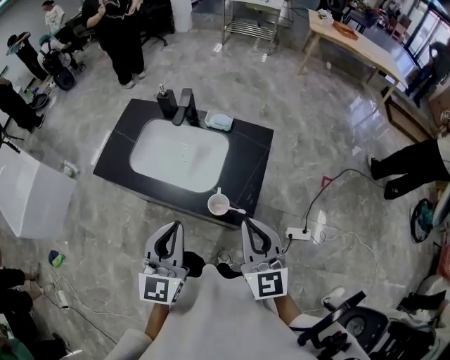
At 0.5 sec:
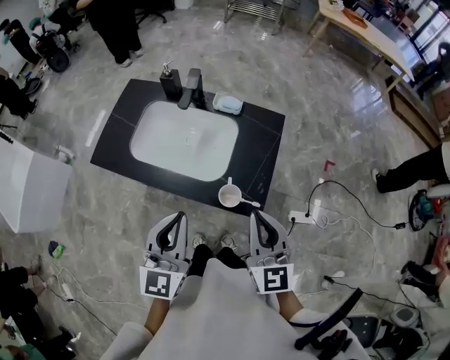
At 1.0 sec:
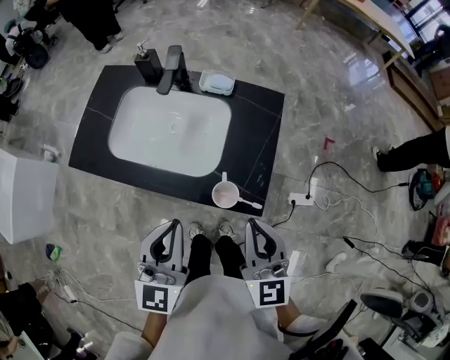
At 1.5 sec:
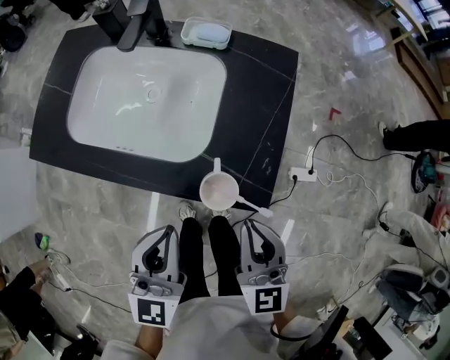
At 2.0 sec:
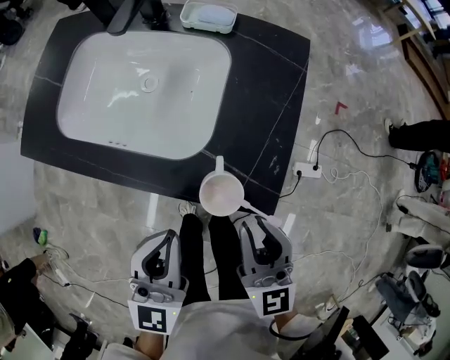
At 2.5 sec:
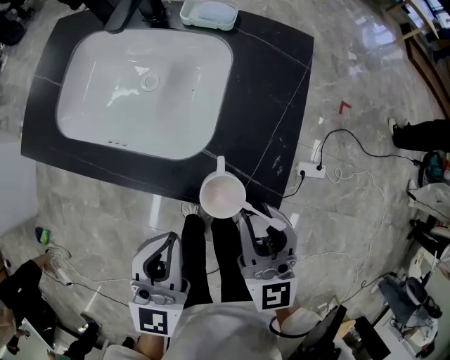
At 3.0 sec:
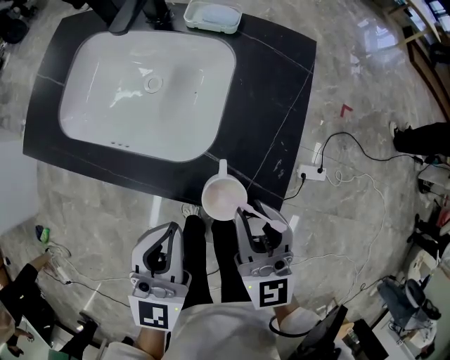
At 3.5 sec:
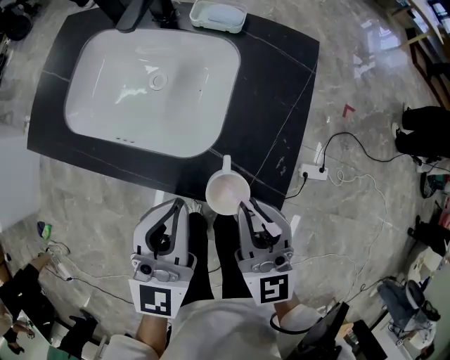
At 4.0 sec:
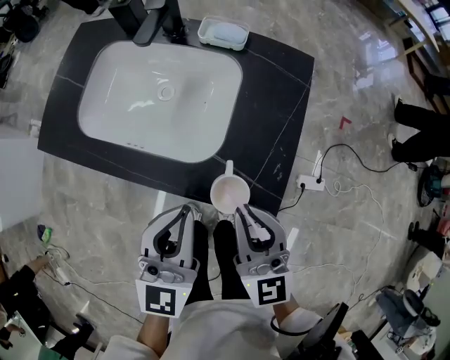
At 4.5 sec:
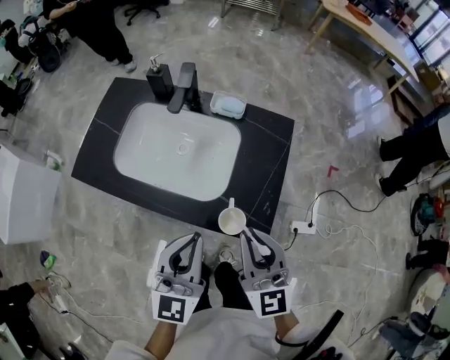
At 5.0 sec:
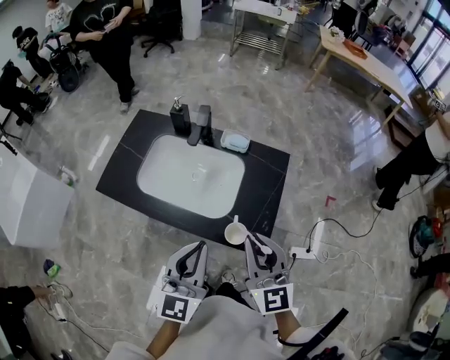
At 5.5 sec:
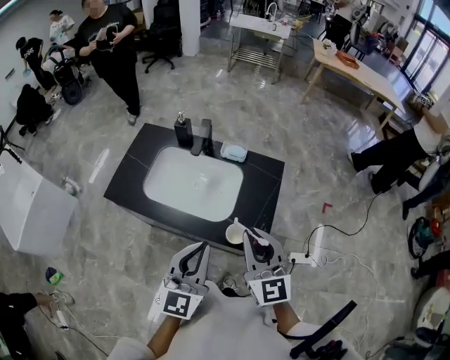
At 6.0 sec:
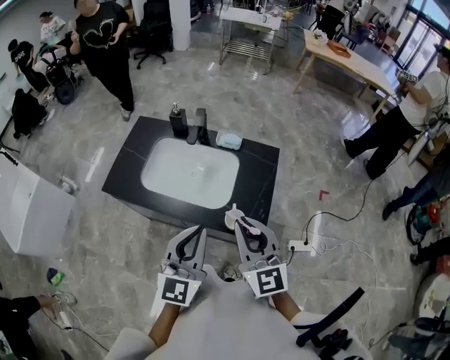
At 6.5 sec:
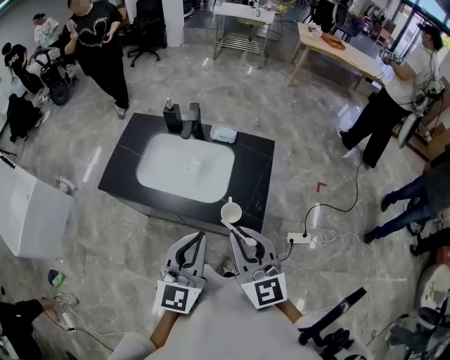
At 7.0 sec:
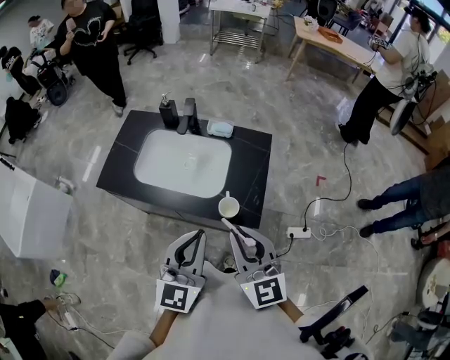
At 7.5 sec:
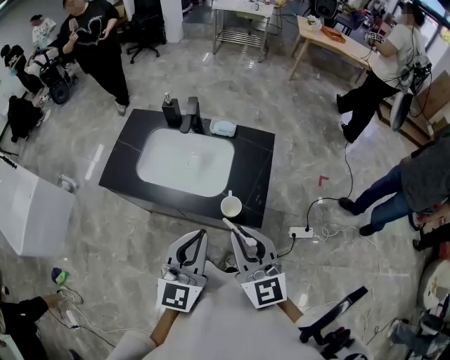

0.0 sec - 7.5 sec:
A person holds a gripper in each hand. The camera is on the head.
0.0 sec - 2.0 sec: Both grippers move downward, roughly 20 cm.
2.0 sec - 4.0 sec: The grippers move only a little.
4.0 sec - 5.5 sec: The two grippers go approximately 20 cm upward.
5.5 sec - 7.5 sec: The right gripper heads backward, covering roughly 5 cm.

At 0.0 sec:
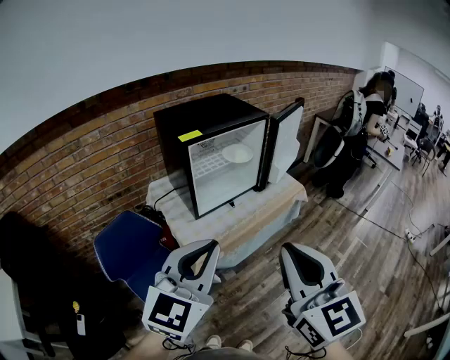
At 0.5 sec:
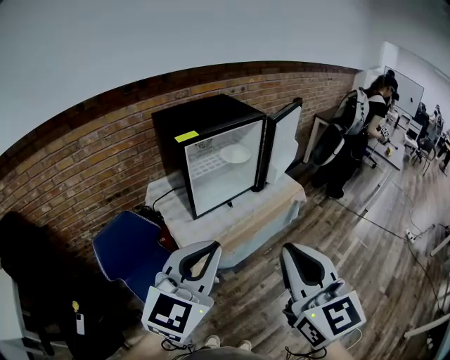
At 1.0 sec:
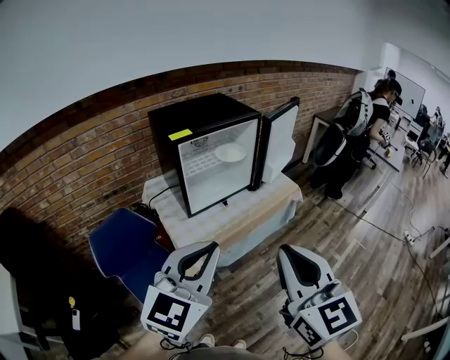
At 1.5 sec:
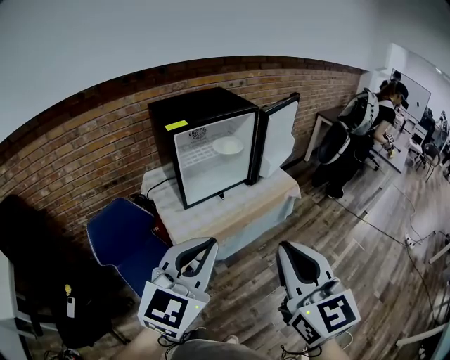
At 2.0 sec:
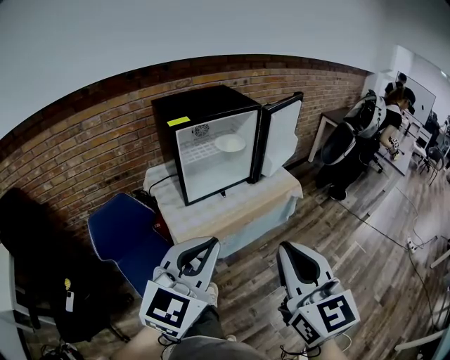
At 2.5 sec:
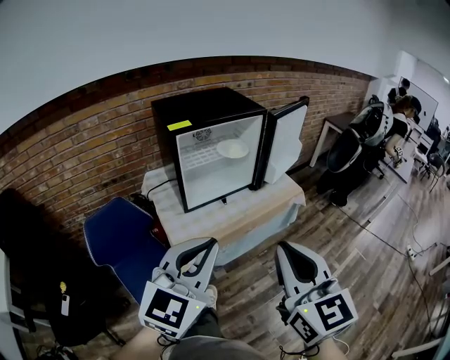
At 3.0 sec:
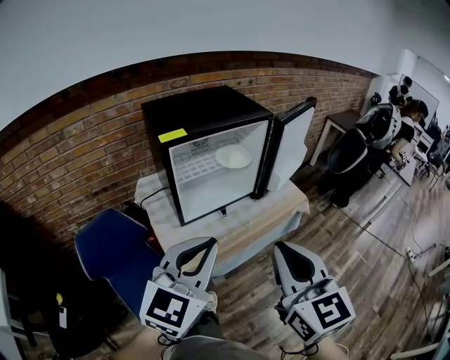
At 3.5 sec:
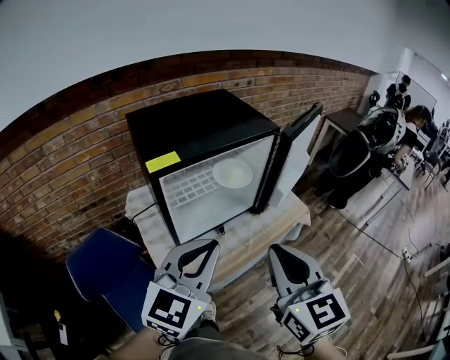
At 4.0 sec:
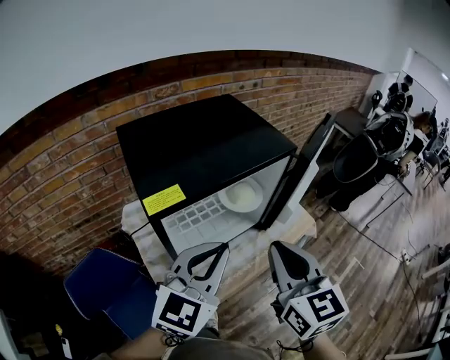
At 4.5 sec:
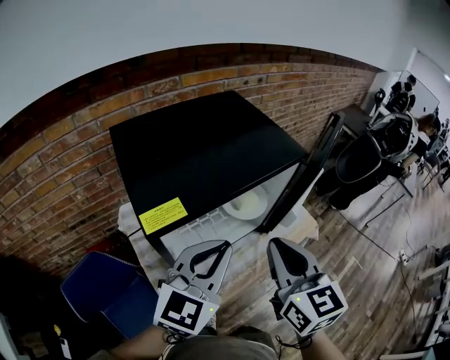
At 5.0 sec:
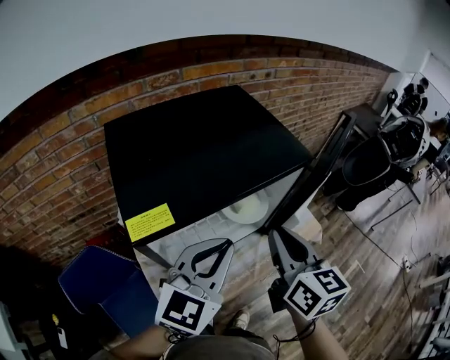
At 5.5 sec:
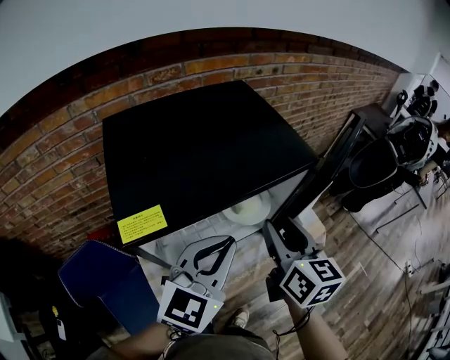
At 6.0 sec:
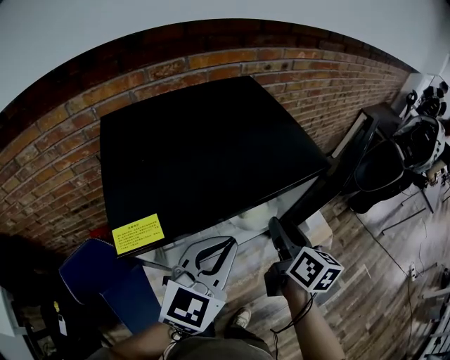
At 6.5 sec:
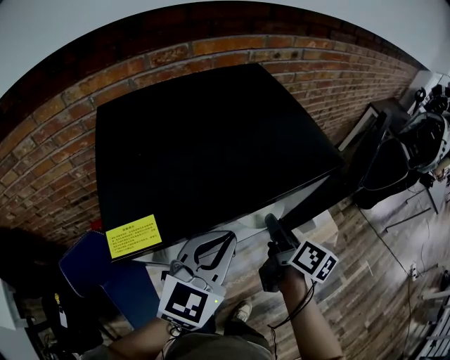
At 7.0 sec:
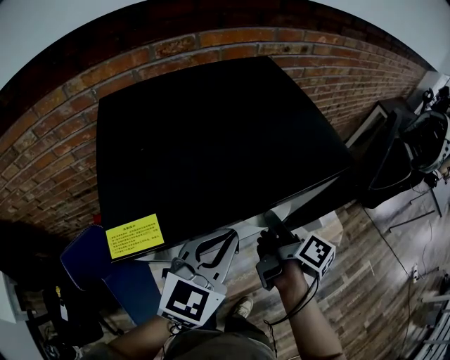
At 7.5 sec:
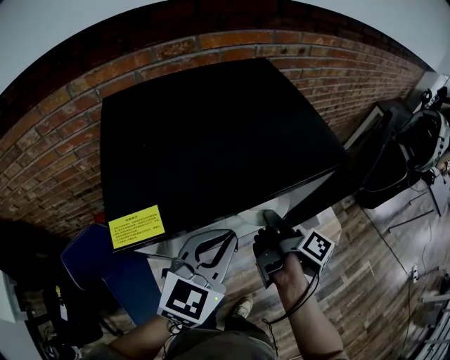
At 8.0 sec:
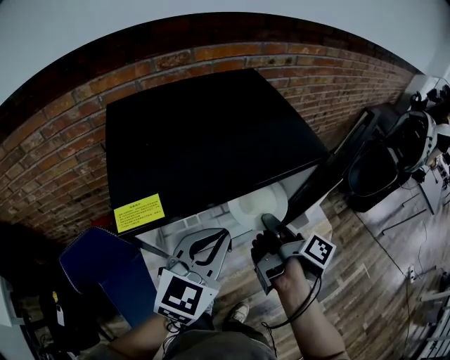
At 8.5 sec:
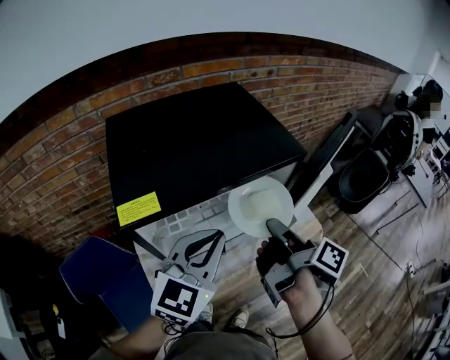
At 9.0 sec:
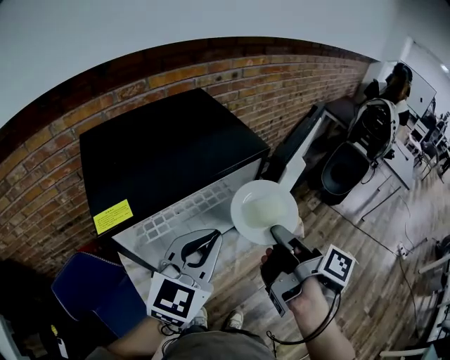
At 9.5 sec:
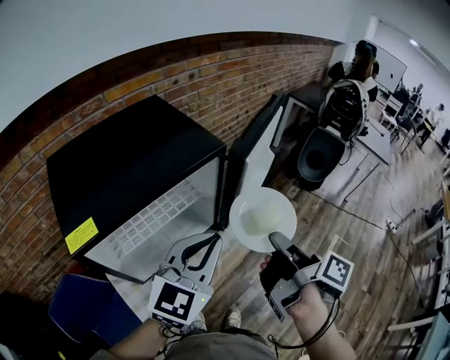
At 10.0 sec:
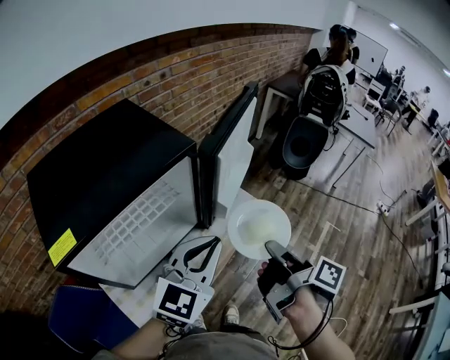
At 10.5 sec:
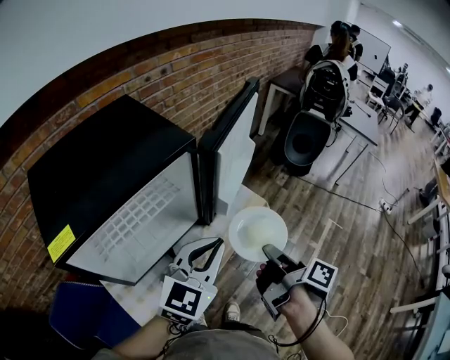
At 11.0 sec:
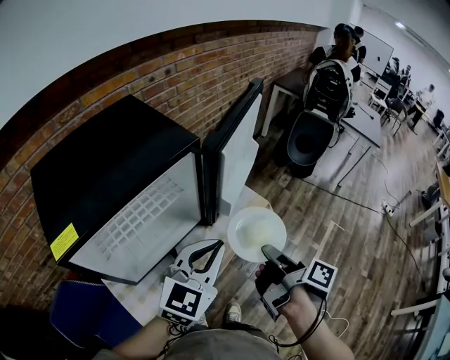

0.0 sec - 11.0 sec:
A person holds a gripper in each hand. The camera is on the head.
0.0 sec - 2.0 sec: Both grippers travel together to the right, about 10 cm.
2.0 sec - 3.5 sec: The two grippers go about 25 cm forward.
3.5 sec - 5.5 sec: The grippers both shift forward by some 20 cm. The right gripper changes its angle by approximately 20 degrees, and opens up.
5.5 sec - 7.5 sec: The right gripper is displaced downward and forward by approximately 15 cm, twists about 70 degrees clockwise, seen from behind, and closes its fingers. Meanwhile the left gripper is displaced downward by approximately 5 cm.
7.5 sec - 9.0 sec: The left gripper heads upward and to the right, covering some 10 cm; the right gripper is displaced upward, backward and to the right by approximately 20 cm.
9.0 sec - 11.0 sec: The two grippers go about 15 cm to the right and downward.

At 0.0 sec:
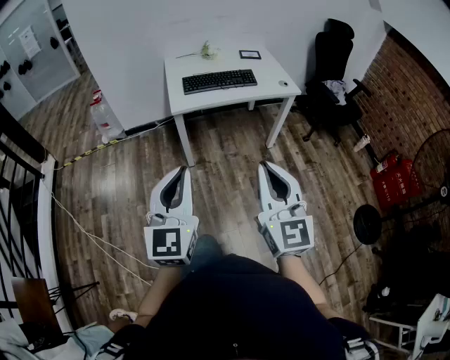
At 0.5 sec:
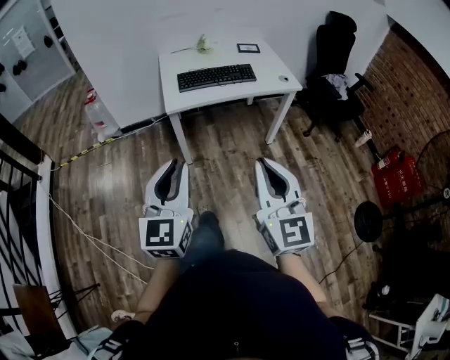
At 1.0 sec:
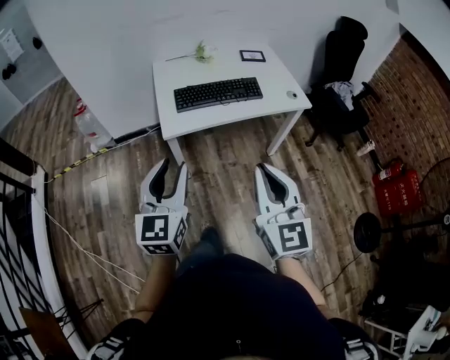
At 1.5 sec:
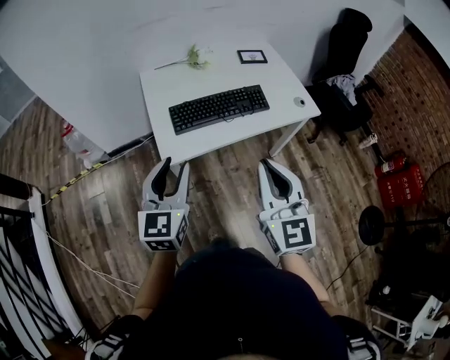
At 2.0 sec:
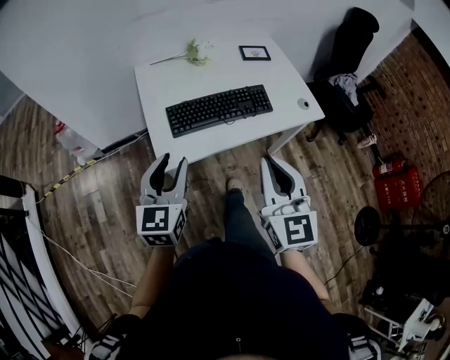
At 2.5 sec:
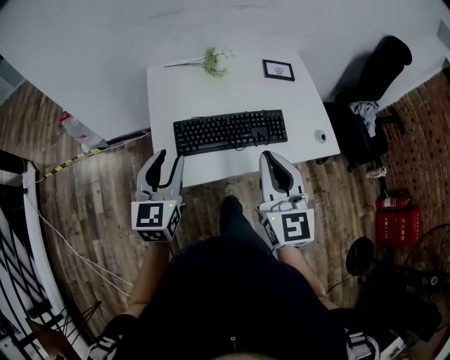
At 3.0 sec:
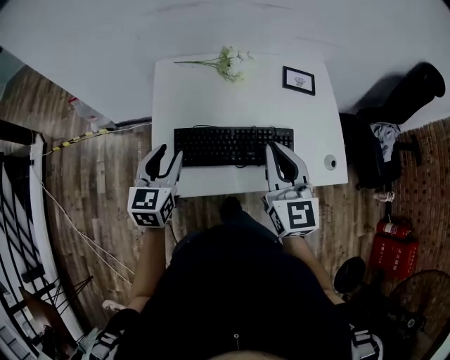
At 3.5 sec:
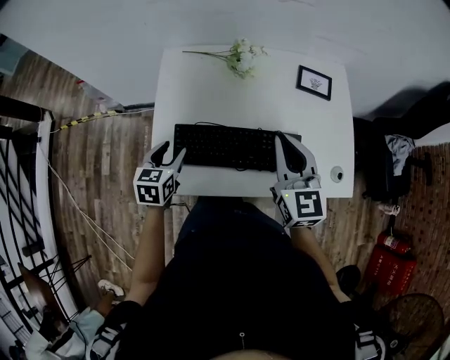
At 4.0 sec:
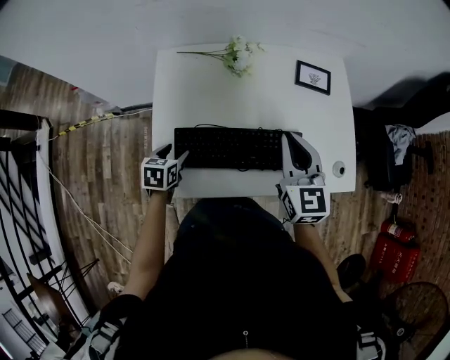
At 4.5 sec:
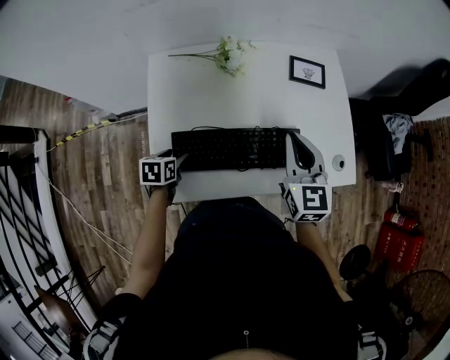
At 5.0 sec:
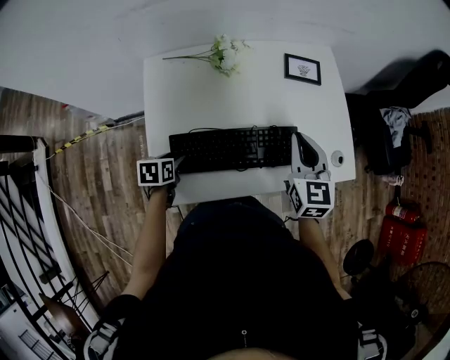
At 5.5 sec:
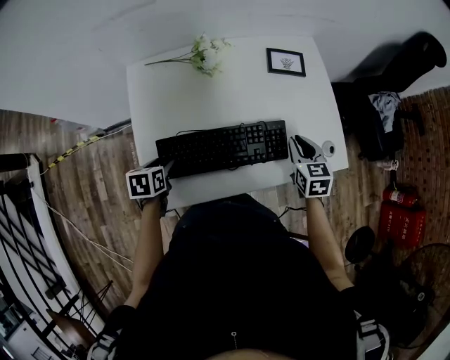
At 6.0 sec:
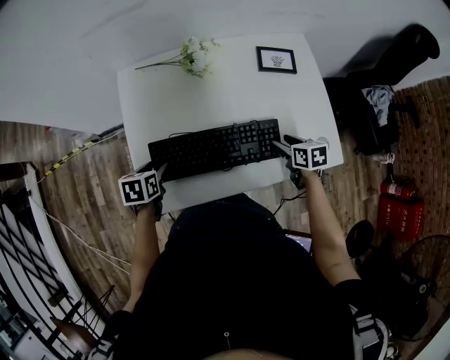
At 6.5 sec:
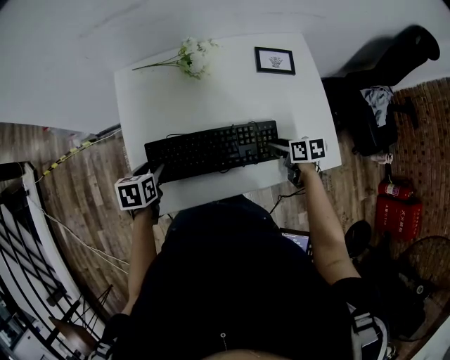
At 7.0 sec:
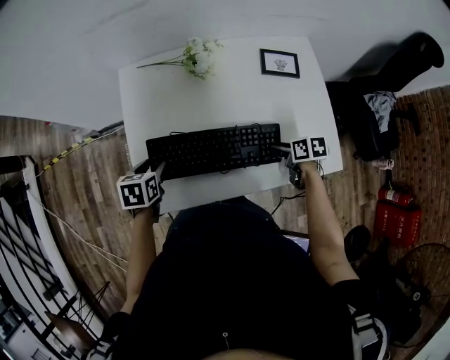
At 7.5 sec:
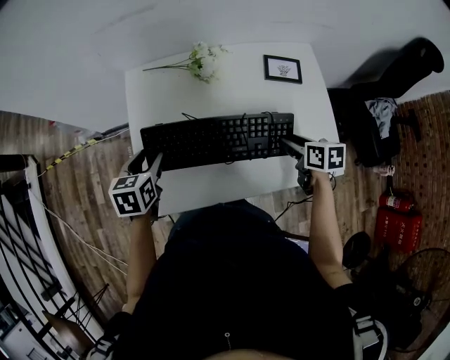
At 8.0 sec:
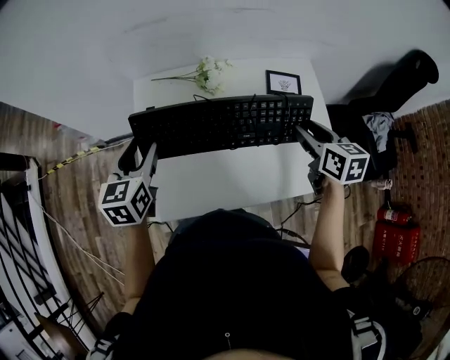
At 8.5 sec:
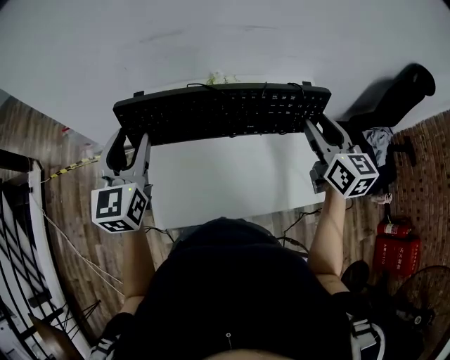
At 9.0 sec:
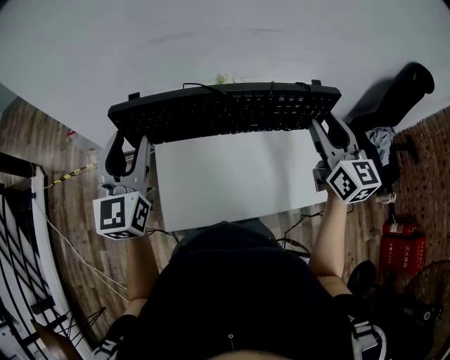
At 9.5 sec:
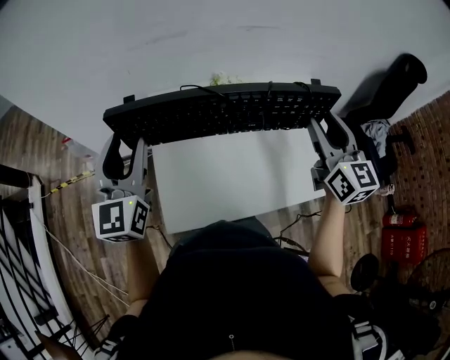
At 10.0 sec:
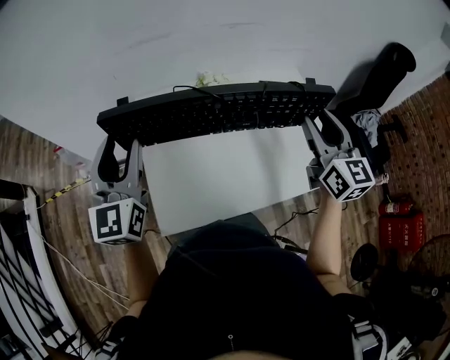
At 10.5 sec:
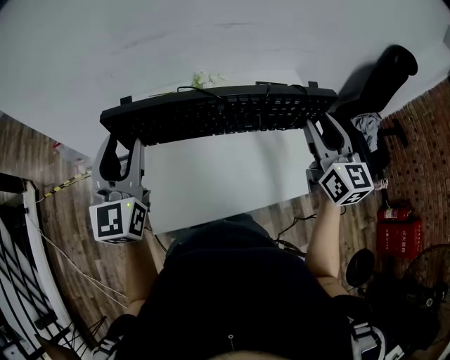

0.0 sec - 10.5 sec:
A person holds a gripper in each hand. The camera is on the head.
0.0 sec - 2.0 sec: The pair of grippers is taken forward, approximately 50 cm. The left gripper opens.
2.0 sec - 4.0 sec: The left gripper travels downward and forward by about 35 cm, points its fingers some 40 degrees further downward, and opens its fingers. The right gripper moves forward, roughly 35 cm.
4.0 sec - 6.5 sec: The right gripper moves downward and to the right, about 25 cm, angles its fingers downward, by about 40 degrees, and opens up.
6.5 sec - 8.5 sec: Both grippers move upward, roughly 30 cm. The right gripper points its fingers approximately 40 degrees further upward; the left gripper angles its fingers upward, by roughly 50 degrees.
8.5 sec - 10.5 sec: The right gripper is displaced backward by approximately 5 cm.
